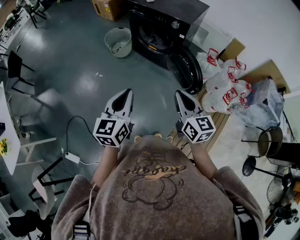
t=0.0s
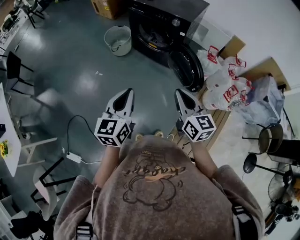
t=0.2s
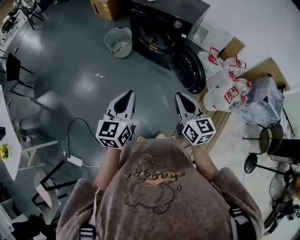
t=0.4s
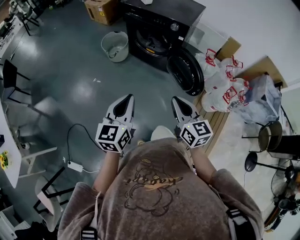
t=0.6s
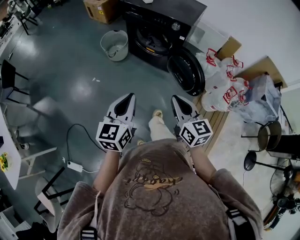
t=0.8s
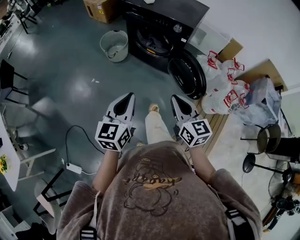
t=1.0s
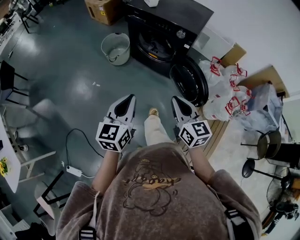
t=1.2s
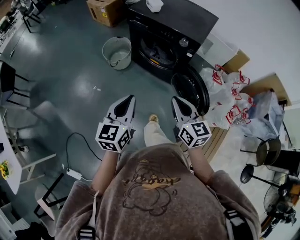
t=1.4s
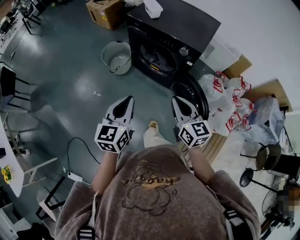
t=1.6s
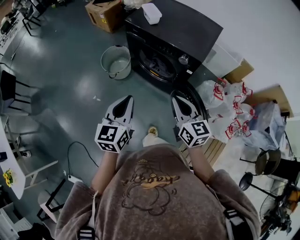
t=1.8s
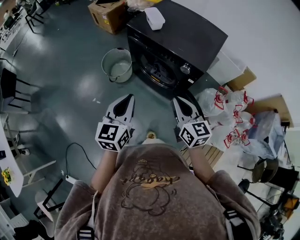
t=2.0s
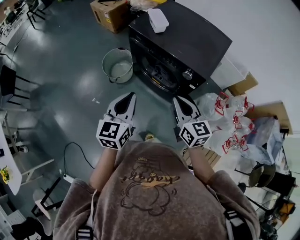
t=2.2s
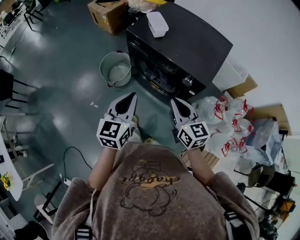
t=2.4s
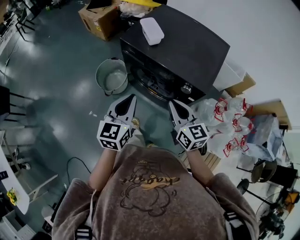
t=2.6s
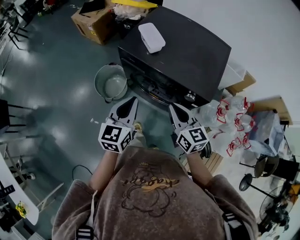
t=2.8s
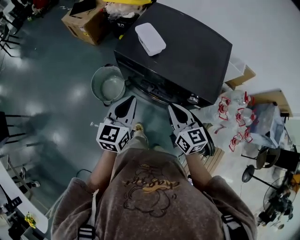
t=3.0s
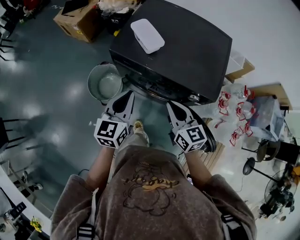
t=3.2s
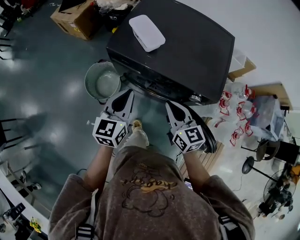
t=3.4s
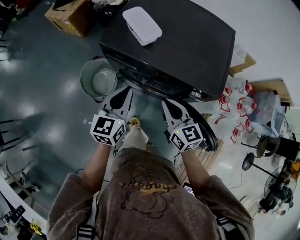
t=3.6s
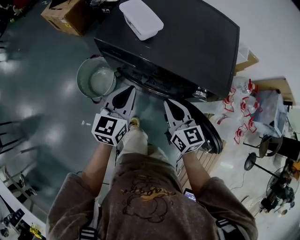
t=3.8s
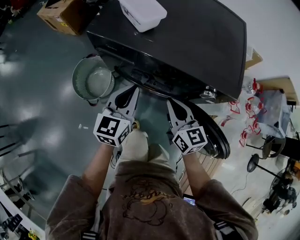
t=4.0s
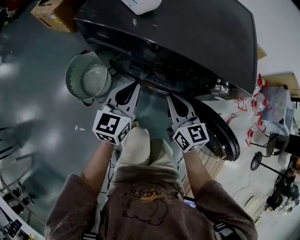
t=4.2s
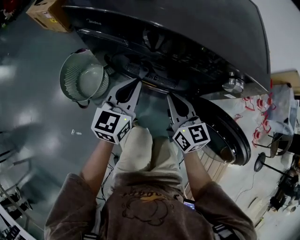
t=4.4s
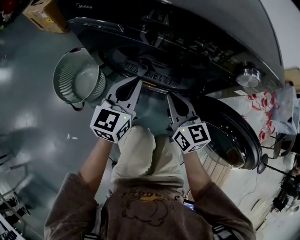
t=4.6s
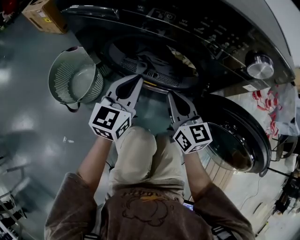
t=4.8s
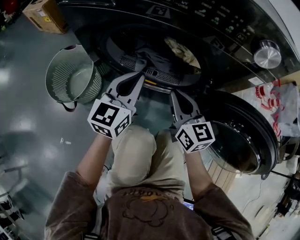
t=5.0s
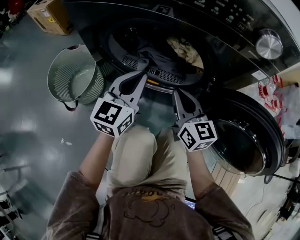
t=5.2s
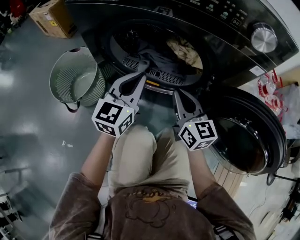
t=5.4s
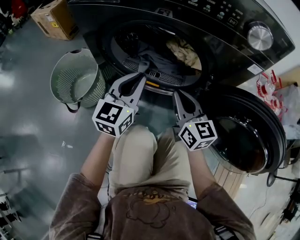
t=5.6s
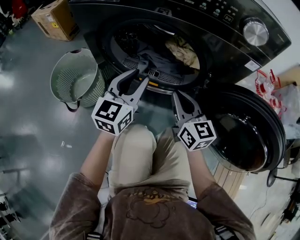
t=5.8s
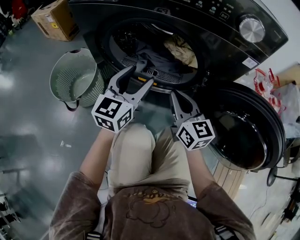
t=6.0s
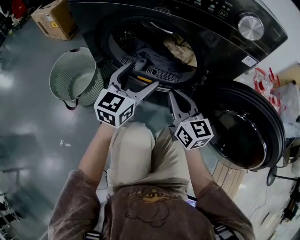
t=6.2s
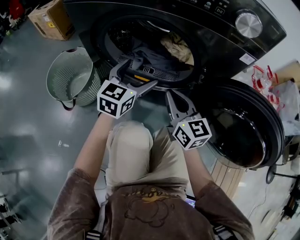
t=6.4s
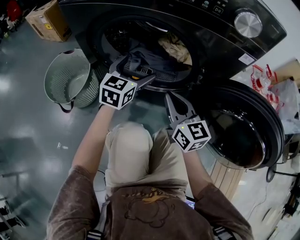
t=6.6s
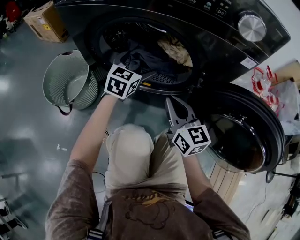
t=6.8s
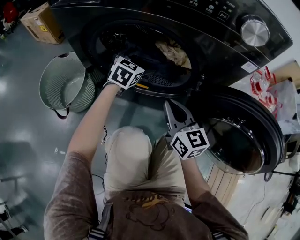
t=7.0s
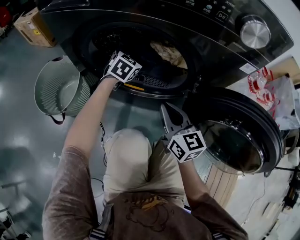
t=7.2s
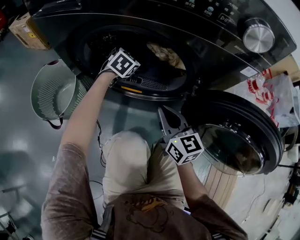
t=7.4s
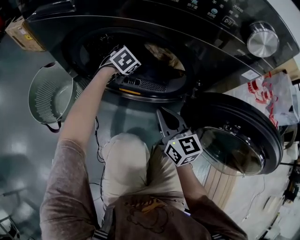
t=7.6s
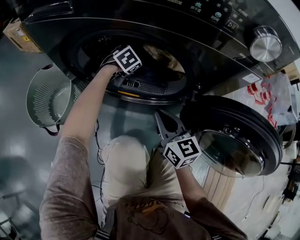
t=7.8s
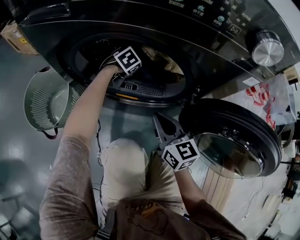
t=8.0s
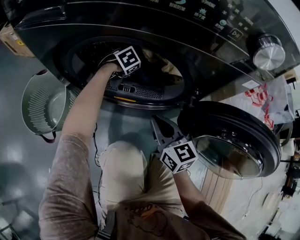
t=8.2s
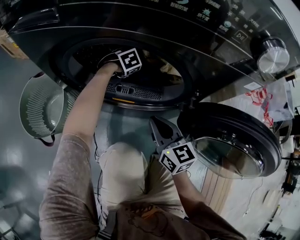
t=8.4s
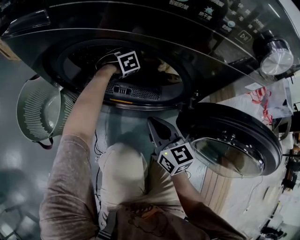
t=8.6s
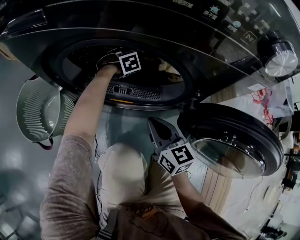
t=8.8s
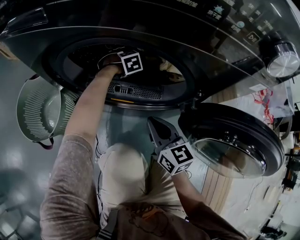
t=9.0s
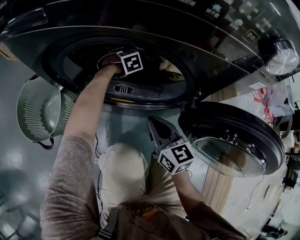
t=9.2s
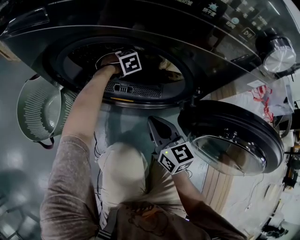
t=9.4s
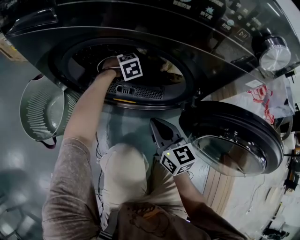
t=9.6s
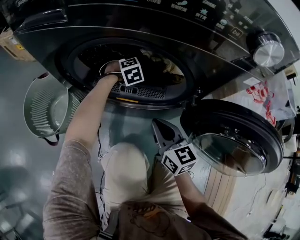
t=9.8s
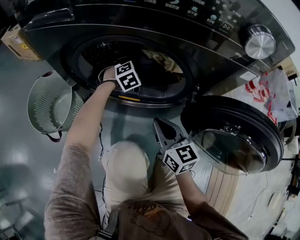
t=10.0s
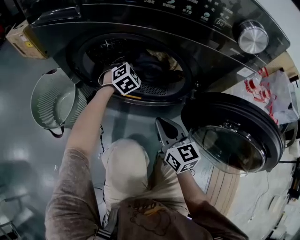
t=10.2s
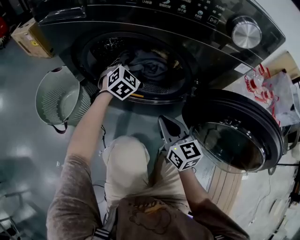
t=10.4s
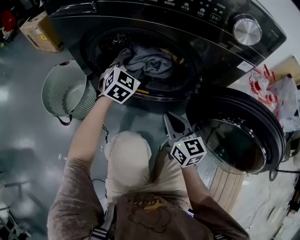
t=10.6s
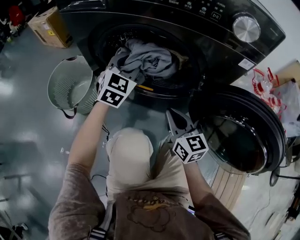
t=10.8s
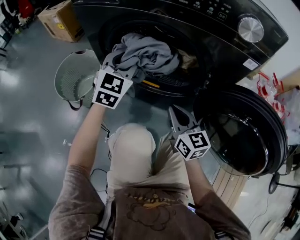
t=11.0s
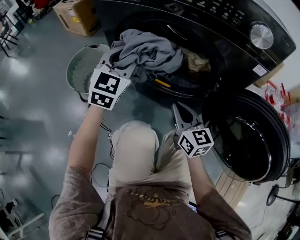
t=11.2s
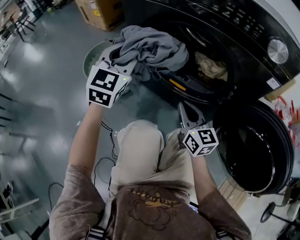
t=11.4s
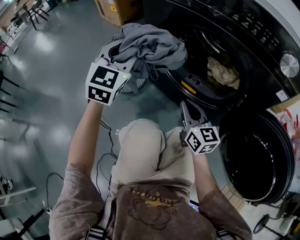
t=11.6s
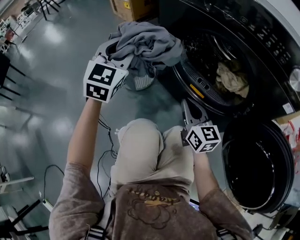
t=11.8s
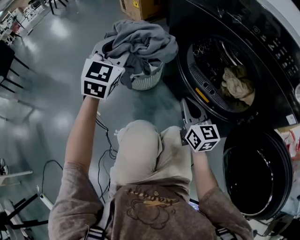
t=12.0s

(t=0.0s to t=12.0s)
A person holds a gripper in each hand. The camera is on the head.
t=0.0s - t=1.6s: The grippers both shift forward by approximately 25 cm.
t=1.6s - t=3.0s: Both grippers travel together forward, some 35 cm.
t=3.0s - t=4.4s: Both grippers move downward, approximately 30 cm.
t=4.4s - t=6.0s: The grippers both shift downward by roughly 10 cm. The left gripper opens.
t=6.0s - t=7.6s: The right gripper moves downward, some 5 cm, while the left gripper is displaced forward and downward by roughly 30 cm, points its fingers approximately 50 degrees further downward, and opens.
t=7.6s - t=9.0s: The left gripper goes some 10 cm downward, and changes its angle by approximately 30 degrees.
t=9.0s - t=10.4s: The left gripper moves upward and backward, some 20 cm, tips its fingers upward by some 40 degrees, and closes up; the right gripper changes place by some 5 cm.
t=10.4s - t=12.0s: The left gripper shifts by approximately 50 cm, and swivels approximately 50 degrees. The right gripper changes place by about 15 cm, and turns by approximately 30 degrees.

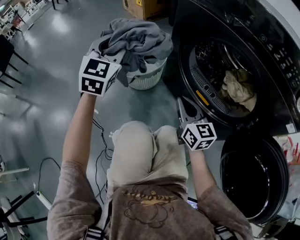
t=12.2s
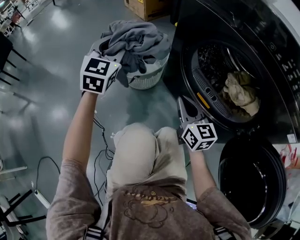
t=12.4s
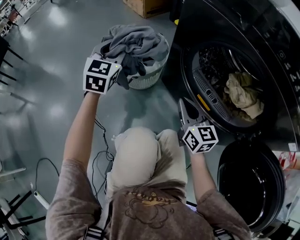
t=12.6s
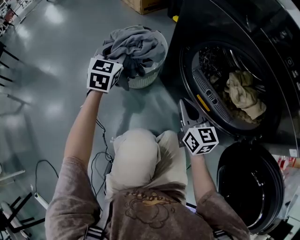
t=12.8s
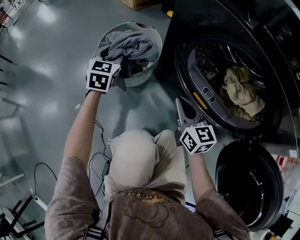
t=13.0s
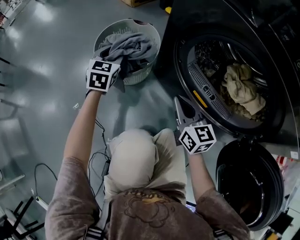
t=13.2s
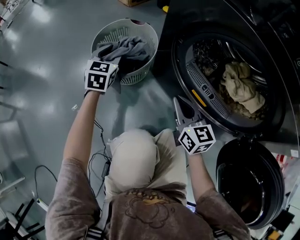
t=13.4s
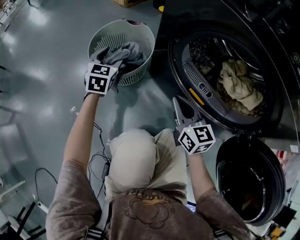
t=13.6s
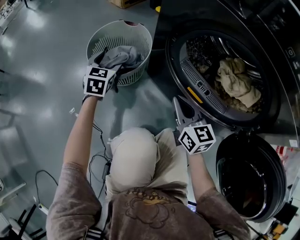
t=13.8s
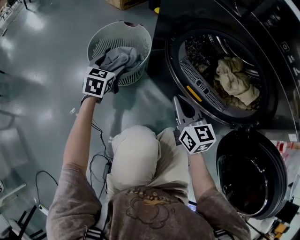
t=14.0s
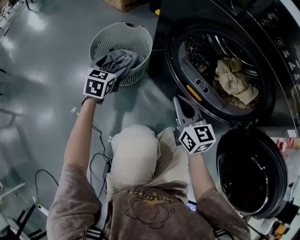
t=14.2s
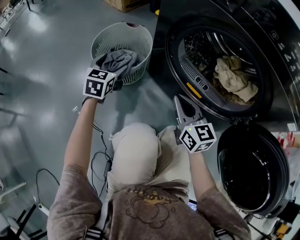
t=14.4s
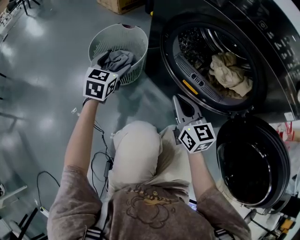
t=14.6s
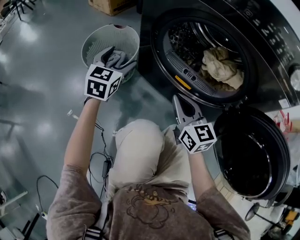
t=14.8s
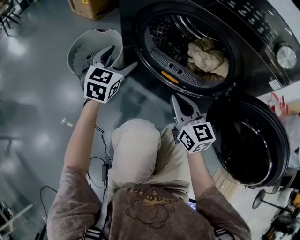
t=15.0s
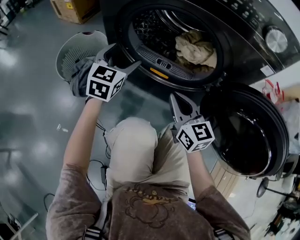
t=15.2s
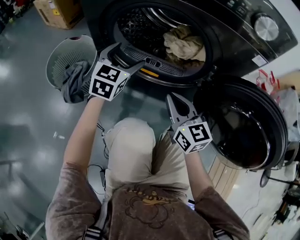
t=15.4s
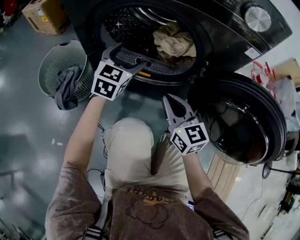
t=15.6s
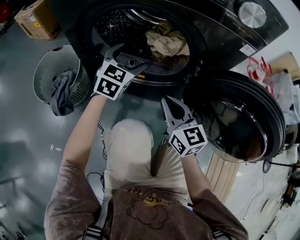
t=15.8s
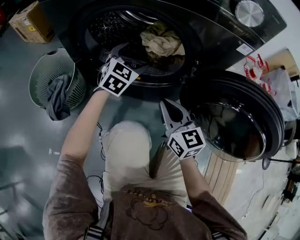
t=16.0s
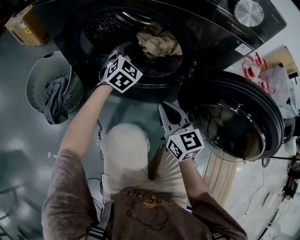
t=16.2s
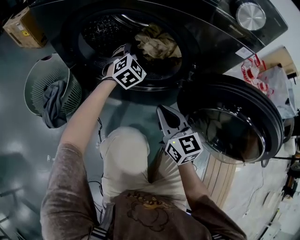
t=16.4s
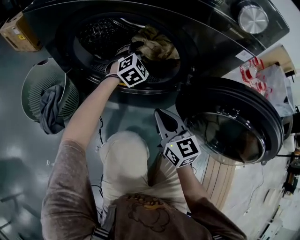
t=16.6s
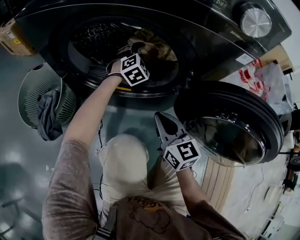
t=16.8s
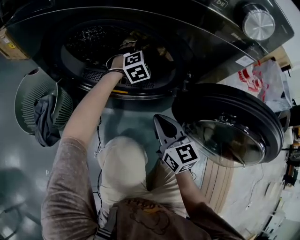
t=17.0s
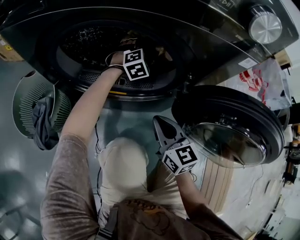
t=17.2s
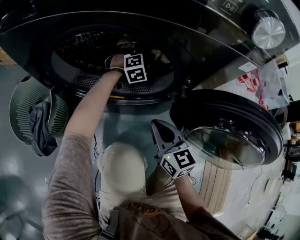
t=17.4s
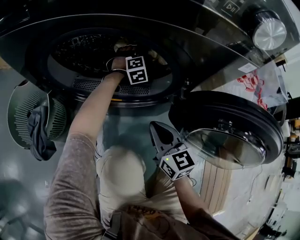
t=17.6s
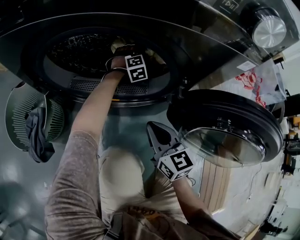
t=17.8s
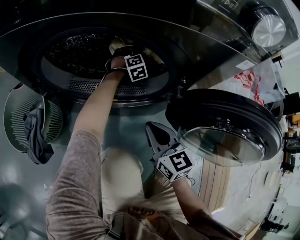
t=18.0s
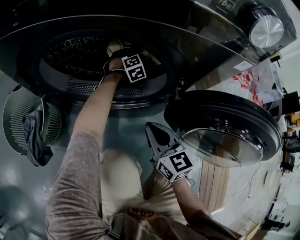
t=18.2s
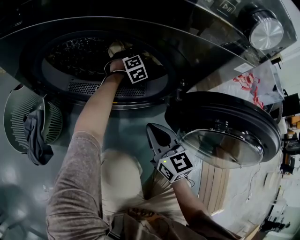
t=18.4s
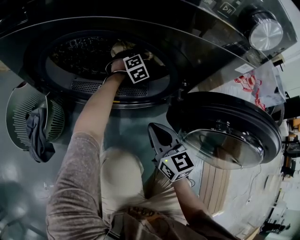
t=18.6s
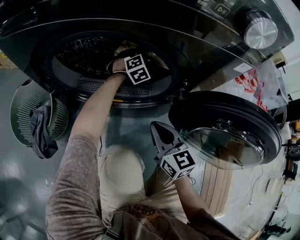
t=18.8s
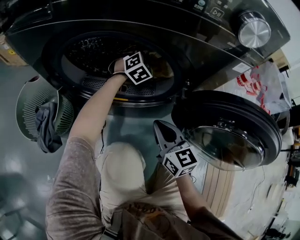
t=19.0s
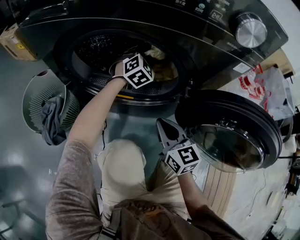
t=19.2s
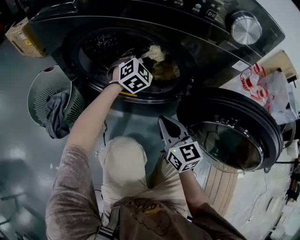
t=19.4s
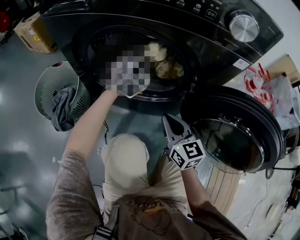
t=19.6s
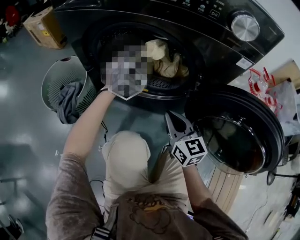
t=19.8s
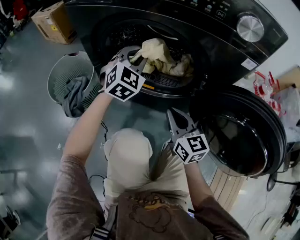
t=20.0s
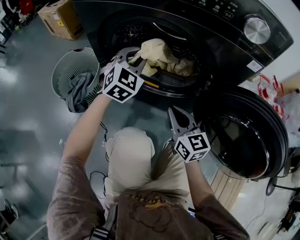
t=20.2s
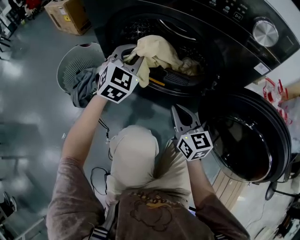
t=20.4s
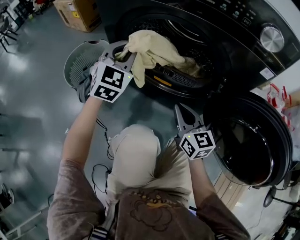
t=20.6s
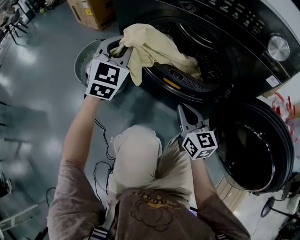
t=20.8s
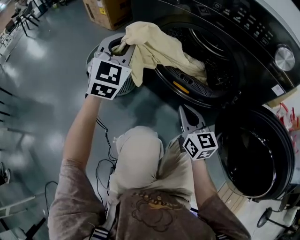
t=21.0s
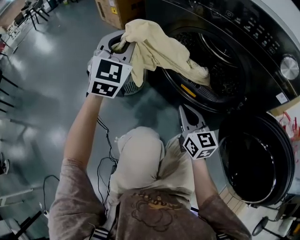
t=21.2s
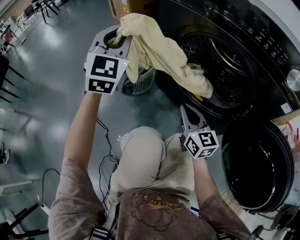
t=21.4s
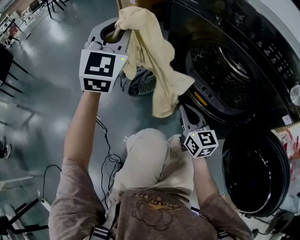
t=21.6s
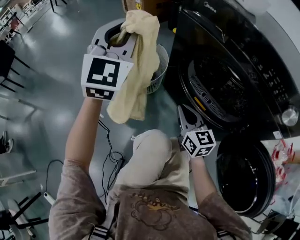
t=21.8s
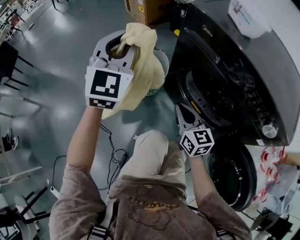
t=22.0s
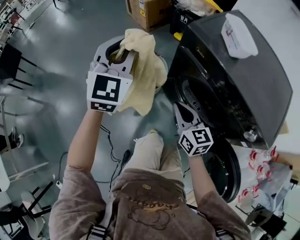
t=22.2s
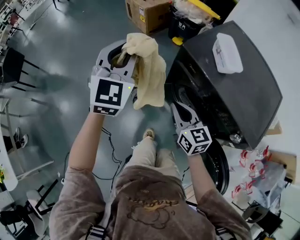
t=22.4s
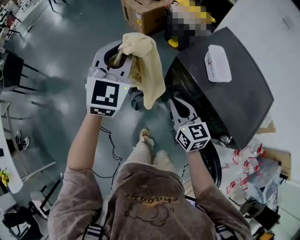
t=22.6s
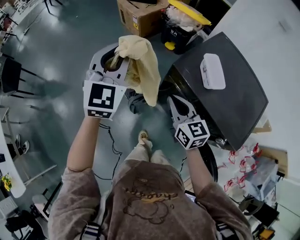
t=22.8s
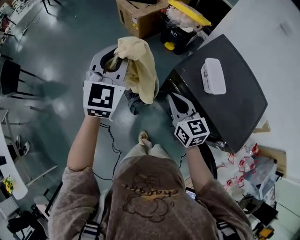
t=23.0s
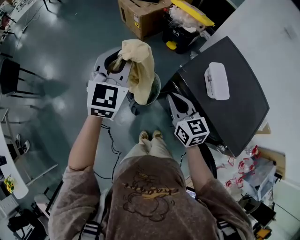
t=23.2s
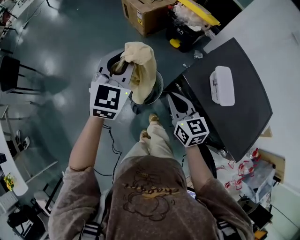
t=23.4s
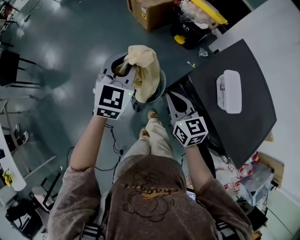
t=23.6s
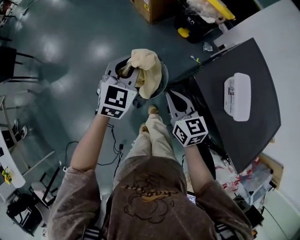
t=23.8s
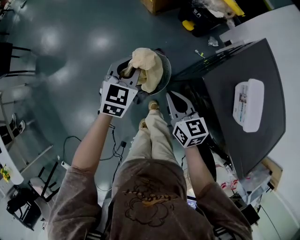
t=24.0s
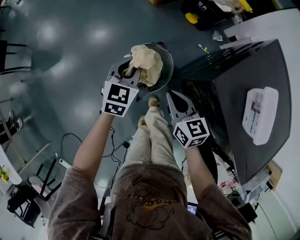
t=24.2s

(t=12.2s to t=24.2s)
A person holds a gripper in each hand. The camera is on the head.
t=12.2s - t=13.8s: The left gripper moves downward, roughly 25 cm, and changes its angle by some 20 degrees; the right gripper moves roughly 5 cm.
t=13.8s - t=15.2s: The right gripper heads backward, to the right and upward, covering approximately 15 cm, while the left gripper goes roughly 25 cm to the right and upward, and changes its angle by about 30 degrees.
t=15.2s - t=16.6s: The right gripper travels to the right by approximately 5 cm. Meanwhile the left gripper heads to the right and forward, covering approximately 30 cm, and changes its angle by roughly 40 degrees.
t=16.6s - t=18.2s: The left gripper heads forward, downward and to the right, covering approximately 15 cm.
t=18.2s - t=19.8s: The left gripper moves upward, backward and to the left, some 35 cm, and swivels approximately 30 degrees.
t=19.8s - t=21.2s: The left gripper shifts about 30 cm to the left and upward, and swivels some 30 degrees. The right gripper goes roughly 10 cm to the left, and swivels roughly 20 degrees.
t=21.2s - t=22.6s: The grippers both shift upward by approximately 40 cm.
t=22.6s - t=24.2s: The left gripper heads downward, covering some 35 cm, and turns by about 30 degrees, while the right gripper travels downward and forward by about 25 cm.
